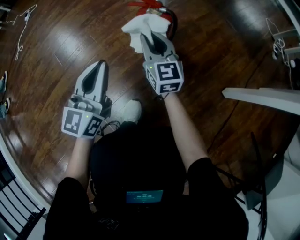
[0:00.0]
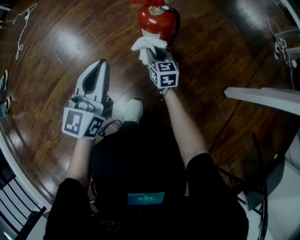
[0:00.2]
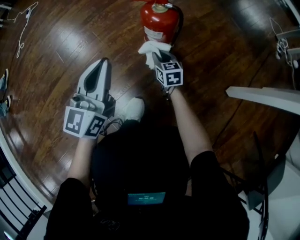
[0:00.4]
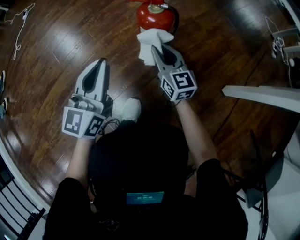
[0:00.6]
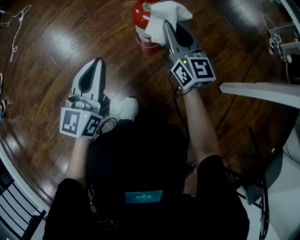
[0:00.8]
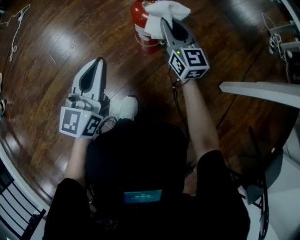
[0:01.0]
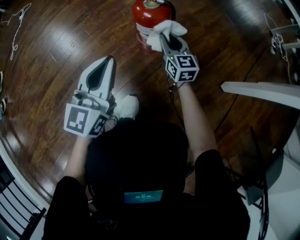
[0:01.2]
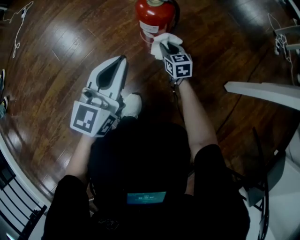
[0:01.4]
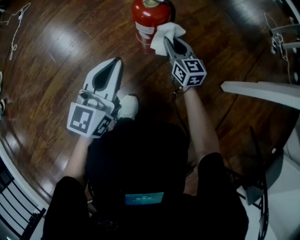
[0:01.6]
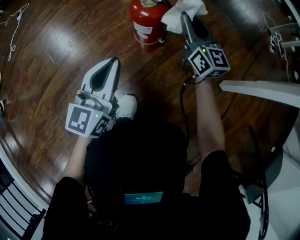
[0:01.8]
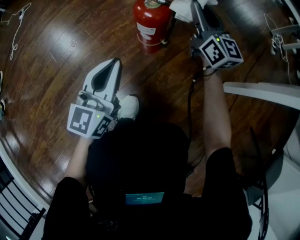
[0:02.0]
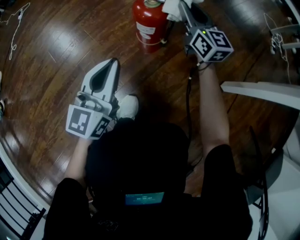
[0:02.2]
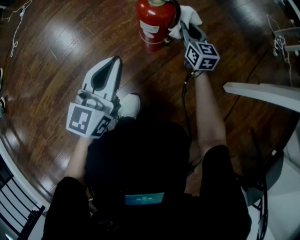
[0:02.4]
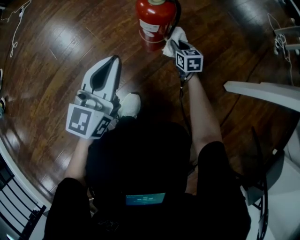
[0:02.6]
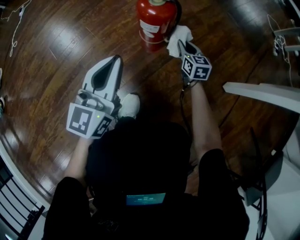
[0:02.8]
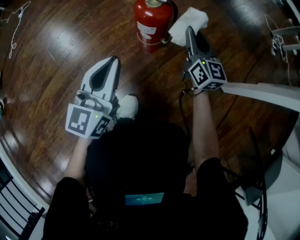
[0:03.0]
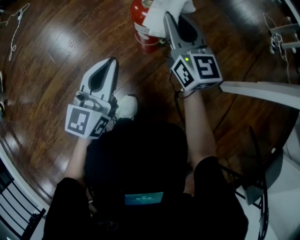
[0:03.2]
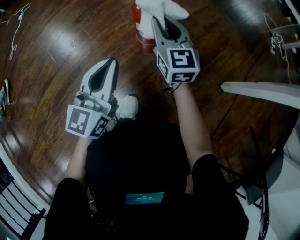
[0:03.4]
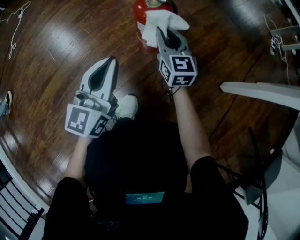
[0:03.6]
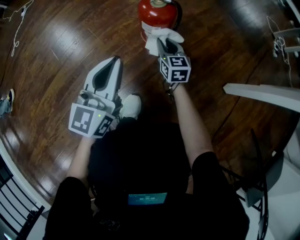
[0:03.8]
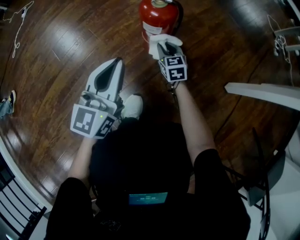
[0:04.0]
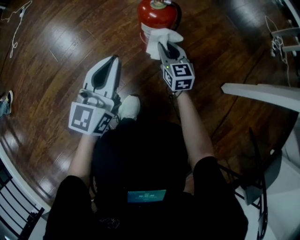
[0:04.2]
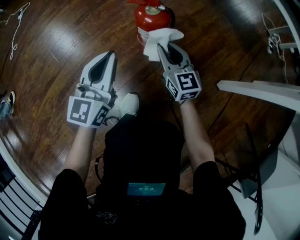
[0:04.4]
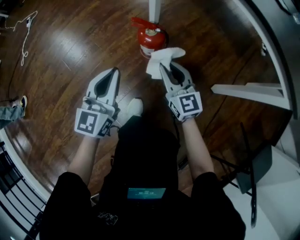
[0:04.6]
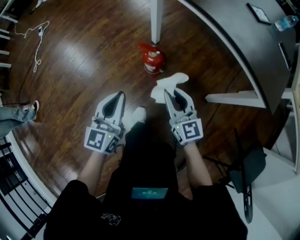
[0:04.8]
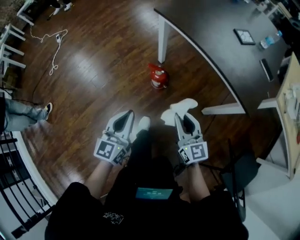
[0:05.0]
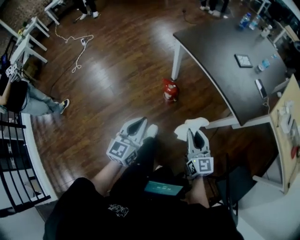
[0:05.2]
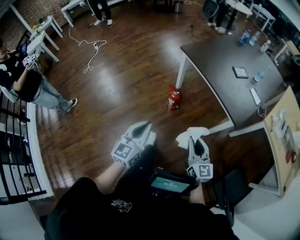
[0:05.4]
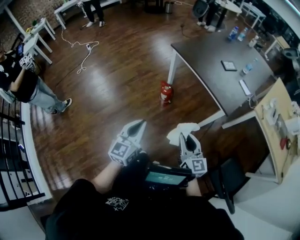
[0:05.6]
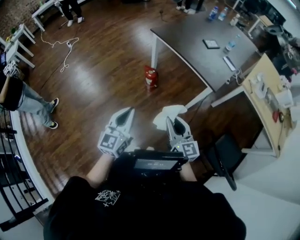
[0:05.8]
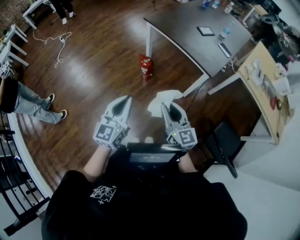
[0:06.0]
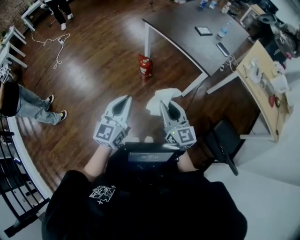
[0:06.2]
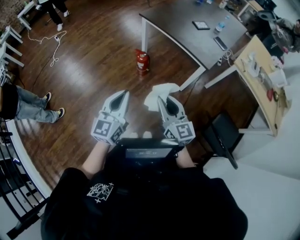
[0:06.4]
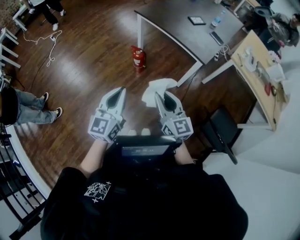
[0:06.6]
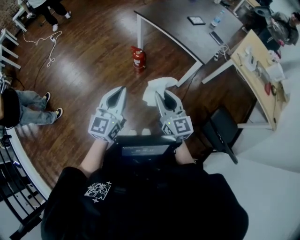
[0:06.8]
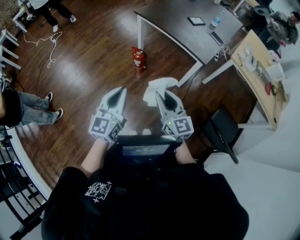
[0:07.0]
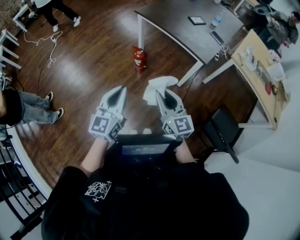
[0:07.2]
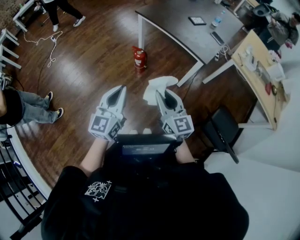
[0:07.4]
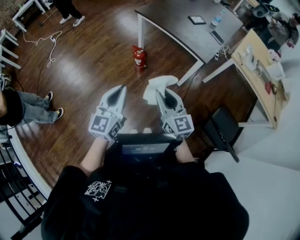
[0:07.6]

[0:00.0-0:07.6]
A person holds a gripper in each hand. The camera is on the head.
0:00.0 to 0:01.6: The right gripper goes up and down, approximately 25 cm each way, reversing 3 times; the left gripper shifts by about 5 cm.
0:01.6 to 0:03.0: The right gripper goes up and down, about 30 cm each way, reversing 2 times.
0:03.0 to 0:04.6: The left gripper goes roughly 10 cm upward, while the right gripper goes up and down, approximately 30 cm each way, reversing 2 times.
0:04.6 to 0:06.0: Both grippers move upward and backward, some 70 cm.
0:06.0 to 0:07.6: The grippers make only small movements.

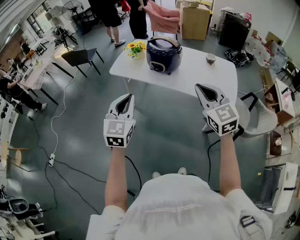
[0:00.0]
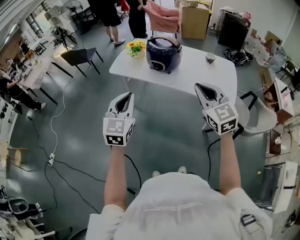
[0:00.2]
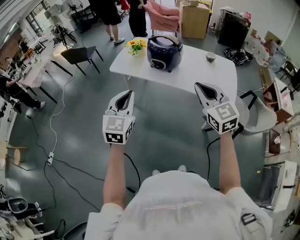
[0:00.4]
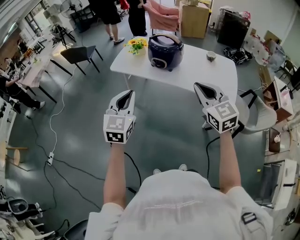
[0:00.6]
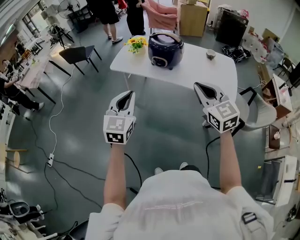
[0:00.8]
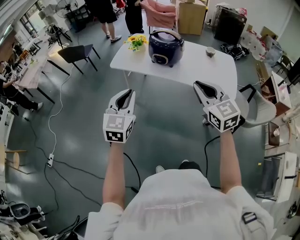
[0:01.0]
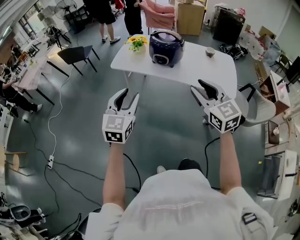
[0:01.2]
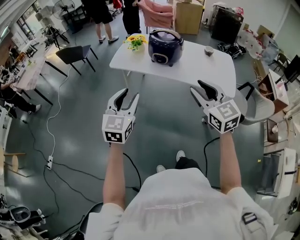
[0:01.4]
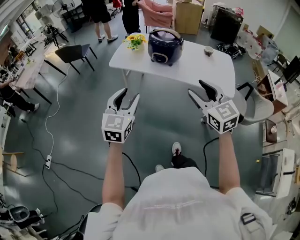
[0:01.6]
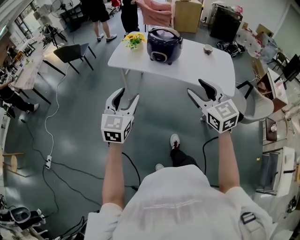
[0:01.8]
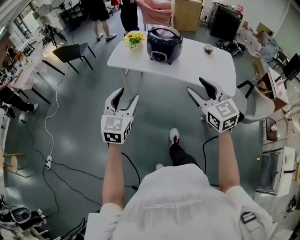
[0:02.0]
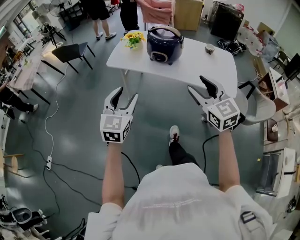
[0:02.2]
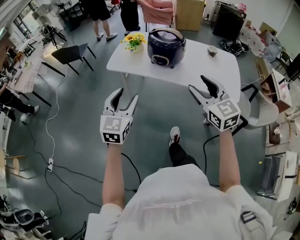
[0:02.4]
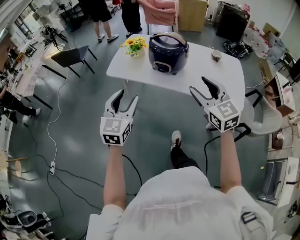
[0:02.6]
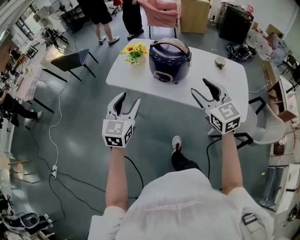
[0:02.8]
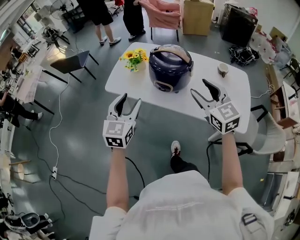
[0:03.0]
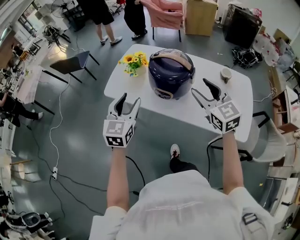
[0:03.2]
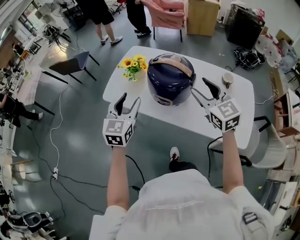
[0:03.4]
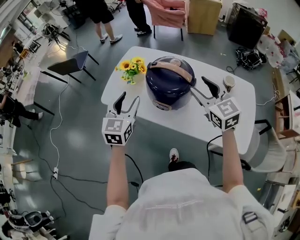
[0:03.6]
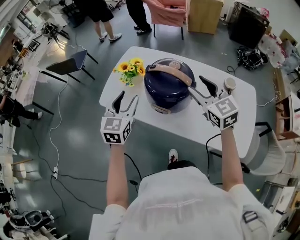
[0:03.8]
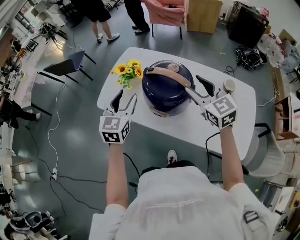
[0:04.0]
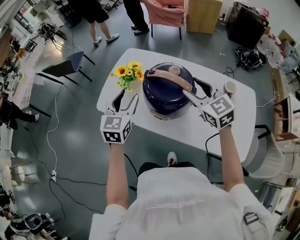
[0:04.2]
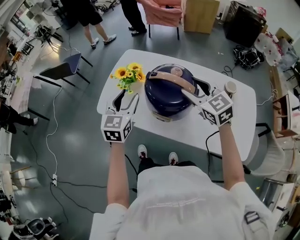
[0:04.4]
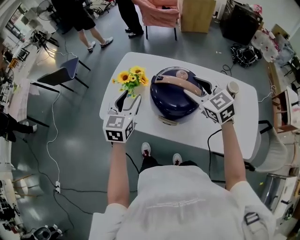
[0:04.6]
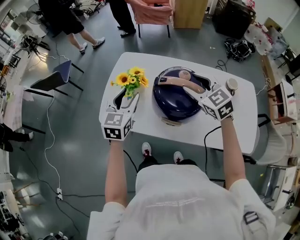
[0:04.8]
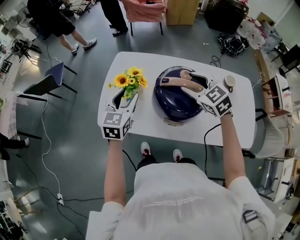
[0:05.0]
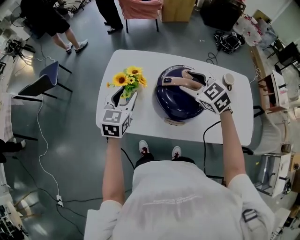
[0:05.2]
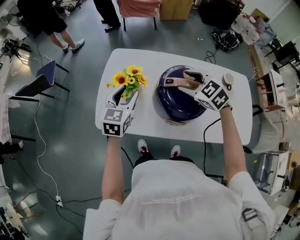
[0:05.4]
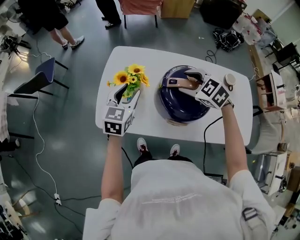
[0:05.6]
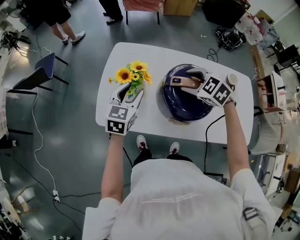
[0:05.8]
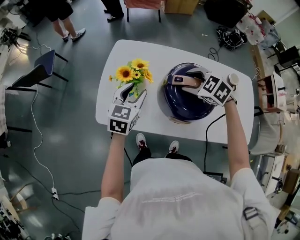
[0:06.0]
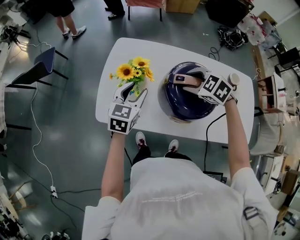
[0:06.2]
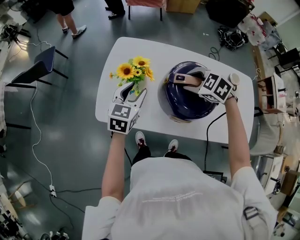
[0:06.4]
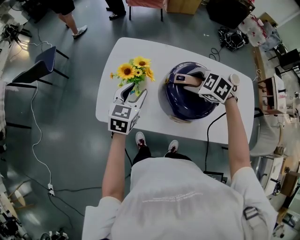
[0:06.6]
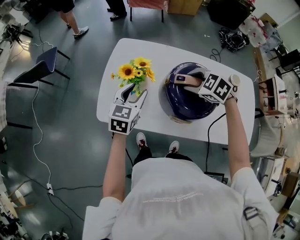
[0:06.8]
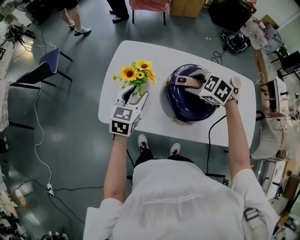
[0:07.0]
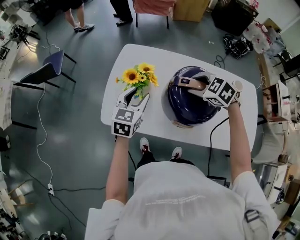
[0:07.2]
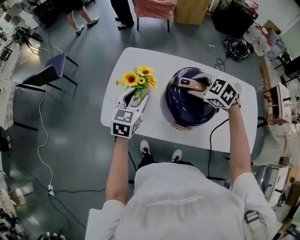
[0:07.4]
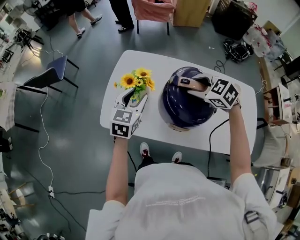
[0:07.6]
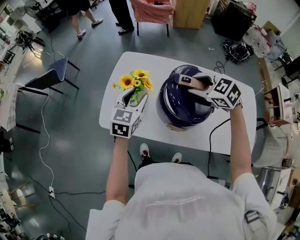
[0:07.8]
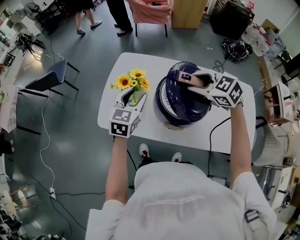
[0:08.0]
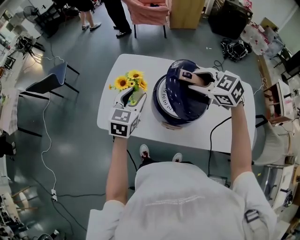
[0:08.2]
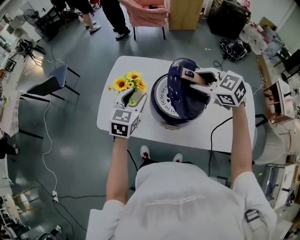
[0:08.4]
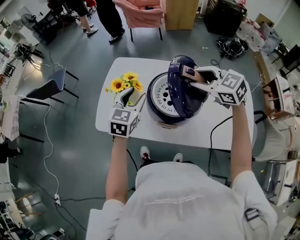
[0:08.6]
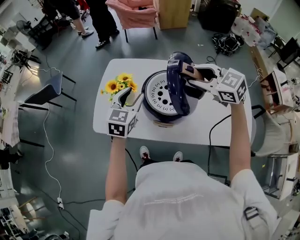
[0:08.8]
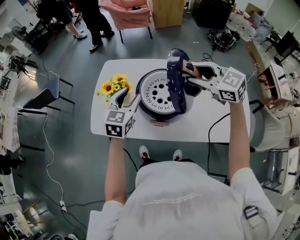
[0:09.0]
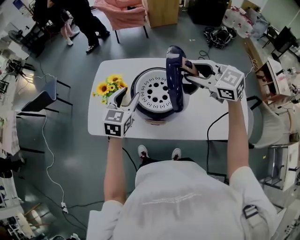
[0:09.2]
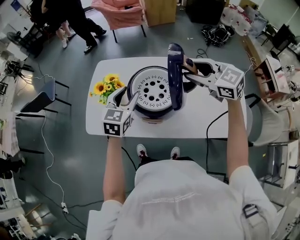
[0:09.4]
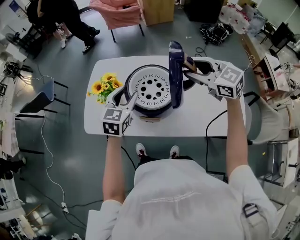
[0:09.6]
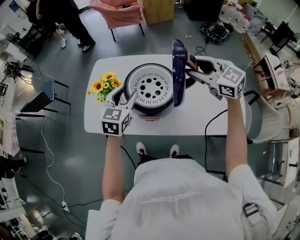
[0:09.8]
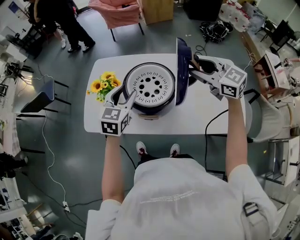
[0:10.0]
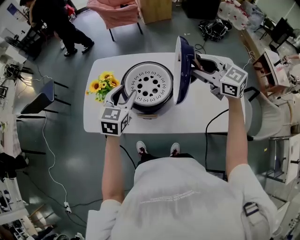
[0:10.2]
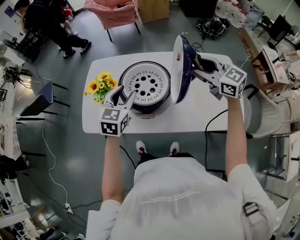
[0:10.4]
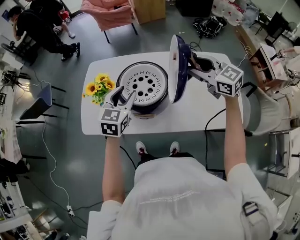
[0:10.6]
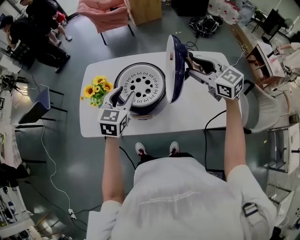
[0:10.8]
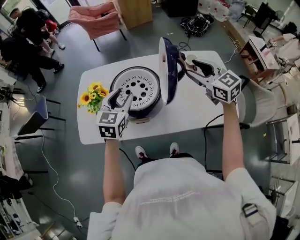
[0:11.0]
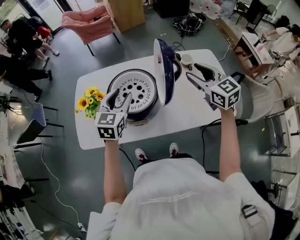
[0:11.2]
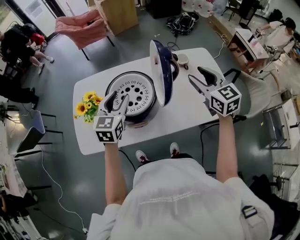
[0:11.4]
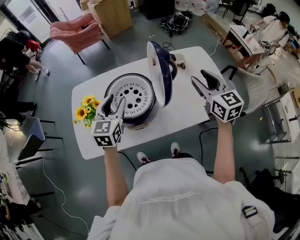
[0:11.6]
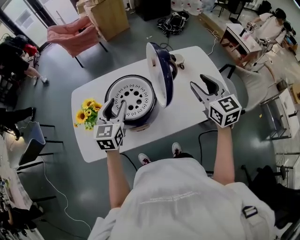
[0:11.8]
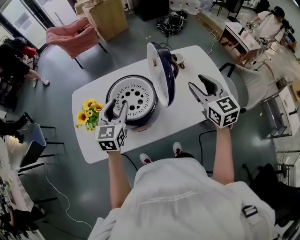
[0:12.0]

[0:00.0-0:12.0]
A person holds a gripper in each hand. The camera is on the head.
0:00.0 to 0:01.6: The two grippers go some 5 cm to the left. The left gripper opens up. The right gripper opens its fingers.
0:01.6 to 0:03.0: The grippers both shift forward by some 25 cm.
0:03.0 to 0:04.4: Both grippers travel together forward, some 20 cm.
0:04.4 to 0:06.0: The left gripper is displaced forward and downward by roughly 15 cm, and turns by some 20 degrees. The right gripper travels downward, to the left and forward by approximately 15 cm, and points its fingers roughly 30 degrees further downward.
0:06.0 to 0:07.6: The grippers stay close to where they were, moving slightly.
0:07.6 to 0:09.0: The left gripper is displaced to the right by about 10 cm. The right gripper moves to the right, upward and backward, roughly 15 cm, and rotates about 30 degrees.
0:09.0 to 0:10.4: The right gripper moves to the right, roughly 10 cm. The left gripper changes place by approximately 5 cm.
0:10.4 to 0:12.0: The right gripper ends up about 10 cm from where it was, and rotates roughly 50 degrees.

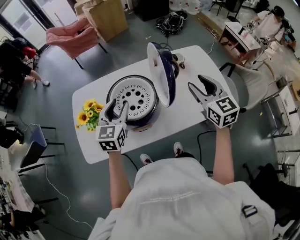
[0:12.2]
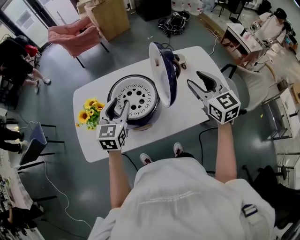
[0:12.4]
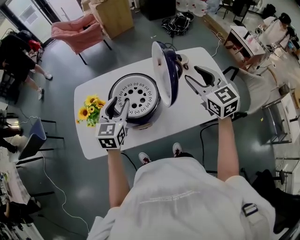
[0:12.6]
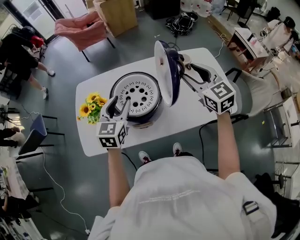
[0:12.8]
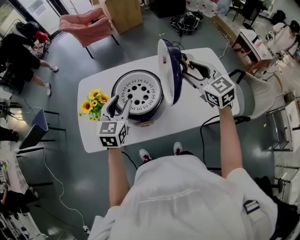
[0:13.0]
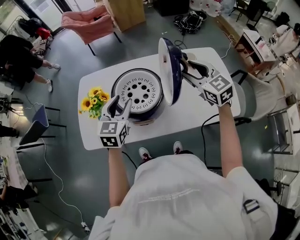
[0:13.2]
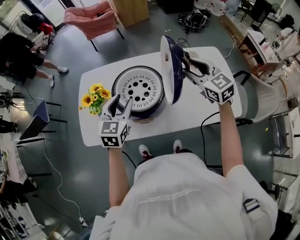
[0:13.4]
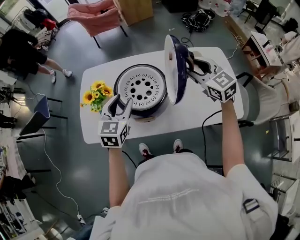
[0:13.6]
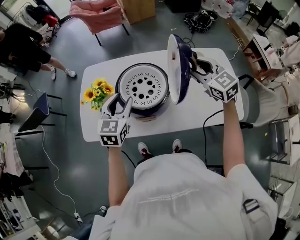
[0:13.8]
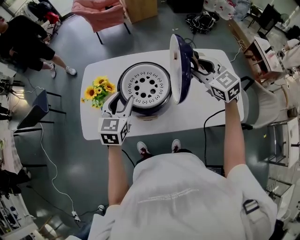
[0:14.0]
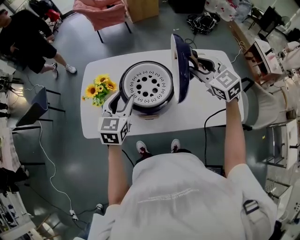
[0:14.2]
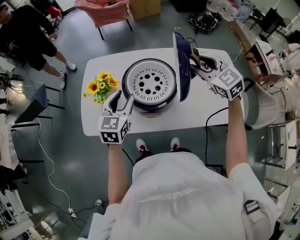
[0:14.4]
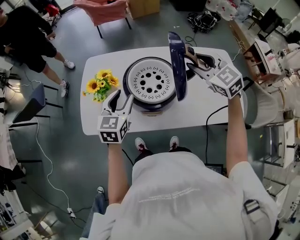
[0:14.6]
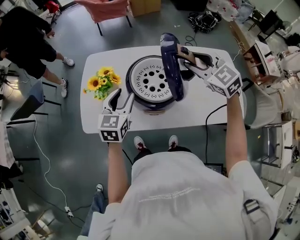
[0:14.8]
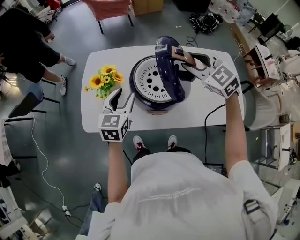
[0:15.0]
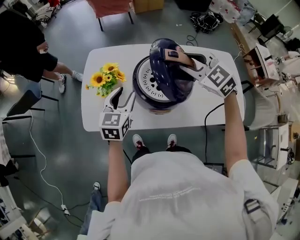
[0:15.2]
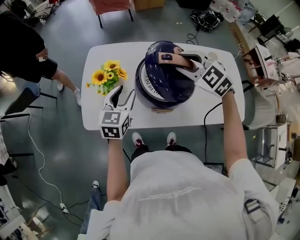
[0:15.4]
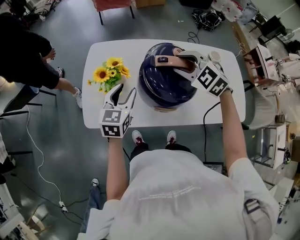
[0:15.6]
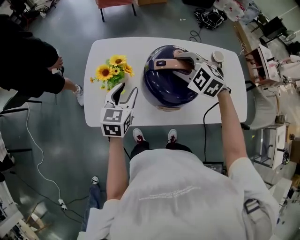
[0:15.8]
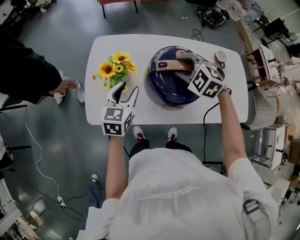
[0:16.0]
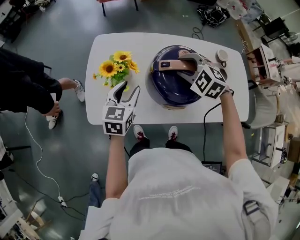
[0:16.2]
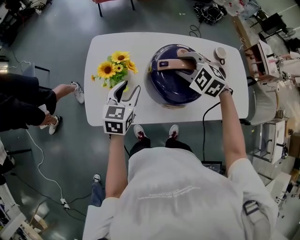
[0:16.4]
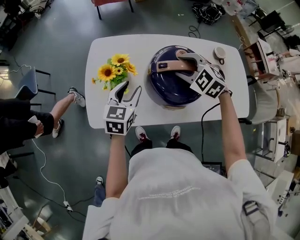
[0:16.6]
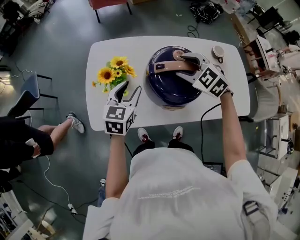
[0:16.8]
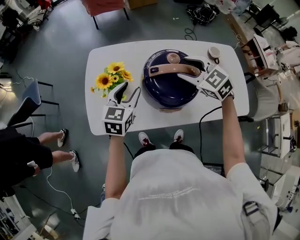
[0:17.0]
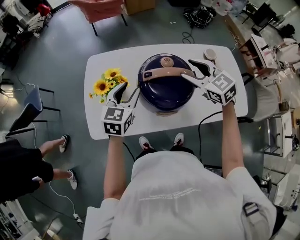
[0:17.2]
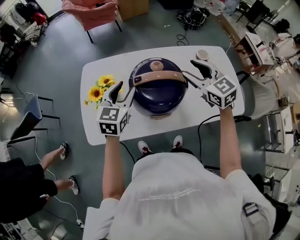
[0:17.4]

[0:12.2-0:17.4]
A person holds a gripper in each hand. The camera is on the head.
0:12.2 to 0:14.0: The right gripper heads forward and to the left, covering approximately 10 cm, and changes its angle by roughly 30 degrees.
0:14.0 to 0:15.6: The right gripper goes about 20 cm to the left, and changes its angle by some 30 degrees, while the left gripper goes about 10 cm to the left.
0:15.6 to 0:17.4: The left gripper moves some 5 cm. The right gripper goes approximately 10 cm to the right, and changes its angle by about 40 degrees.
